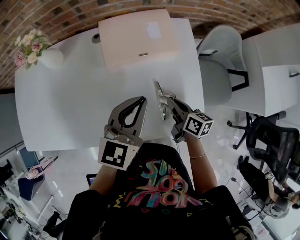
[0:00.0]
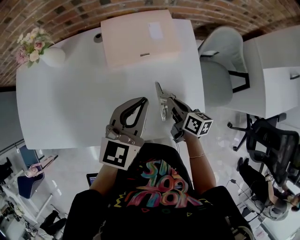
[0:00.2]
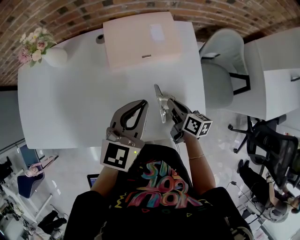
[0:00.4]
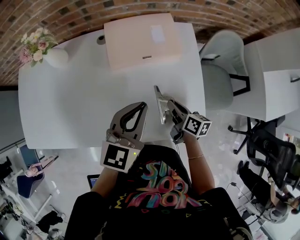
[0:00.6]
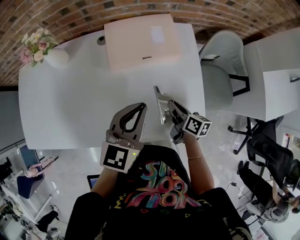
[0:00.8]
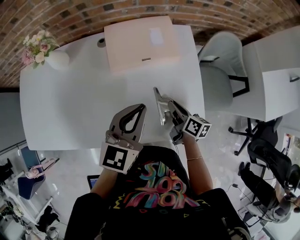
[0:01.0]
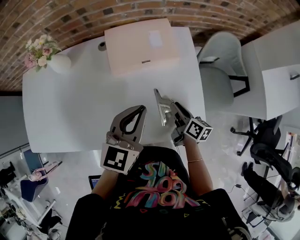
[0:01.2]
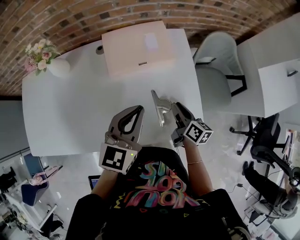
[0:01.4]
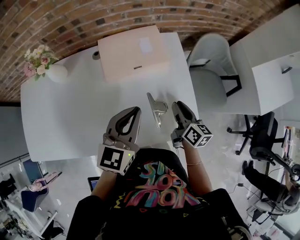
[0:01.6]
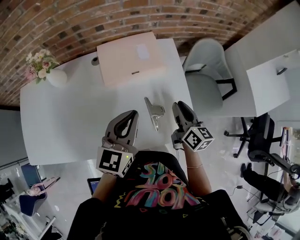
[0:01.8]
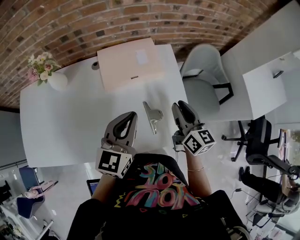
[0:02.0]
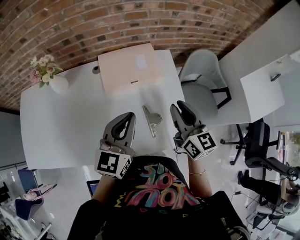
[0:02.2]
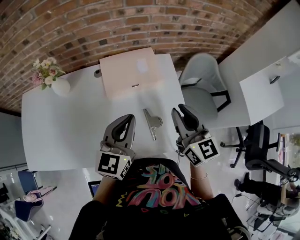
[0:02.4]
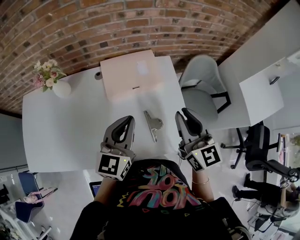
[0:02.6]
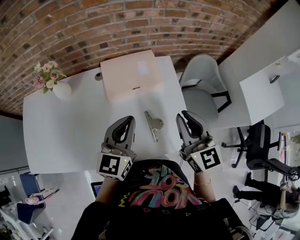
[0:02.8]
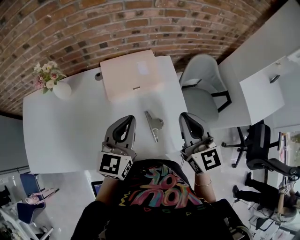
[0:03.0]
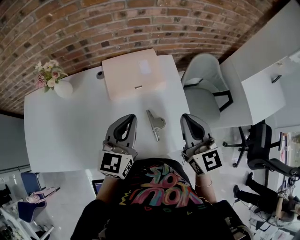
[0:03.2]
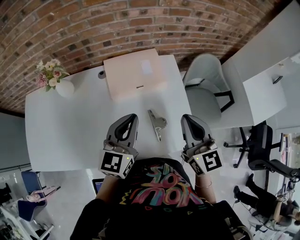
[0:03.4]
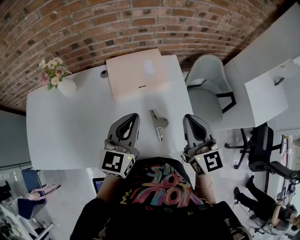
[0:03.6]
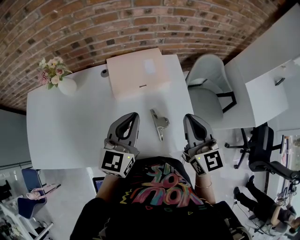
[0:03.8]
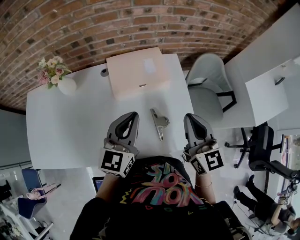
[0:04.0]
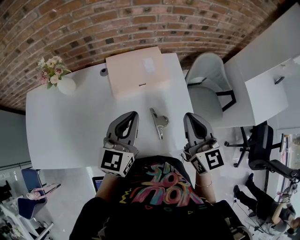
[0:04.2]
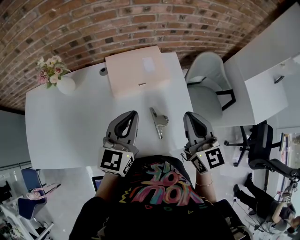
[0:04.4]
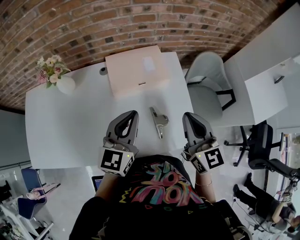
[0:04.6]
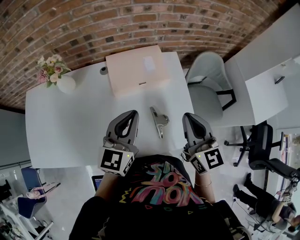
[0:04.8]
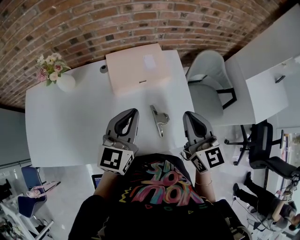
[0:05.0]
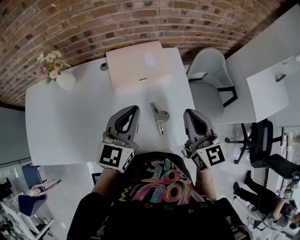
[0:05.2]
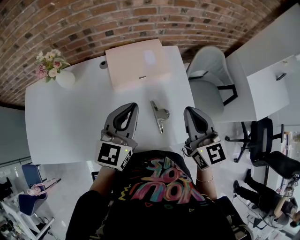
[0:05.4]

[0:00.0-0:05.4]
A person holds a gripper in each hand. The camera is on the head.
0:00.0 to 0:01.4: The right gripper opens up.
0:01.4 to 0:02.8: The right gripper heads upward, covering roughly 25 cm, and rolls counterclockwise, seen from behind, by approximately 50 degrees. Meanwhile the left gripper travels upward by approximately 5 cm.
0:02.8 to 0:05.4: The grippers stay close to where they were, moving slightly.

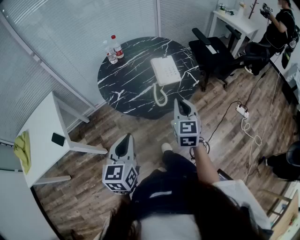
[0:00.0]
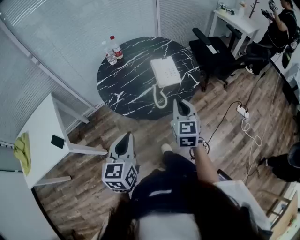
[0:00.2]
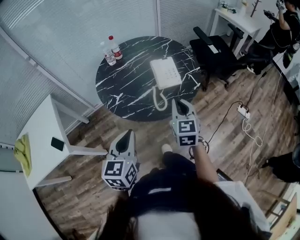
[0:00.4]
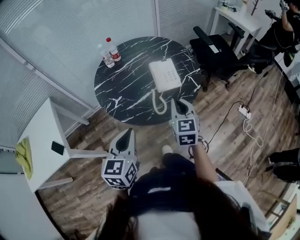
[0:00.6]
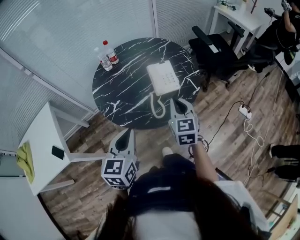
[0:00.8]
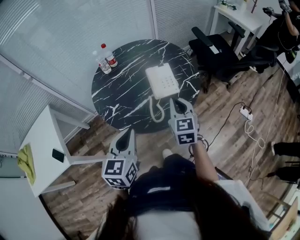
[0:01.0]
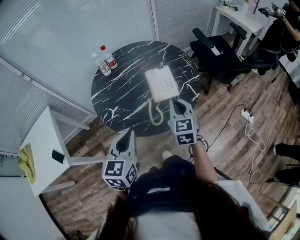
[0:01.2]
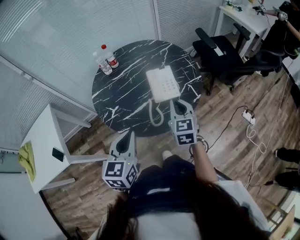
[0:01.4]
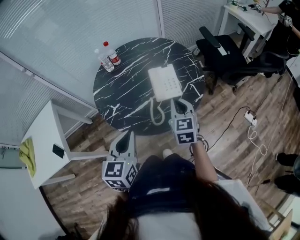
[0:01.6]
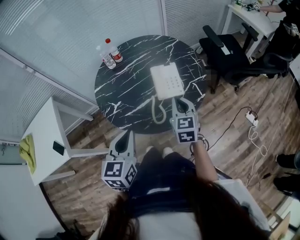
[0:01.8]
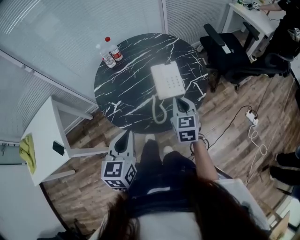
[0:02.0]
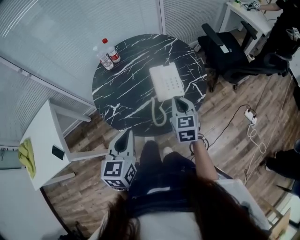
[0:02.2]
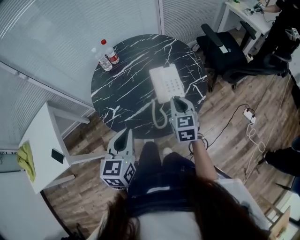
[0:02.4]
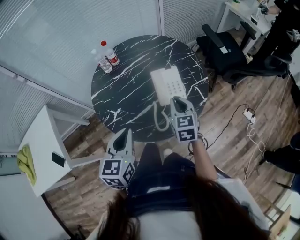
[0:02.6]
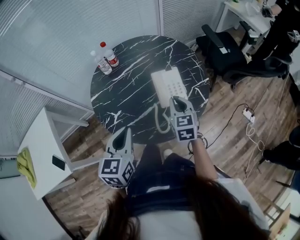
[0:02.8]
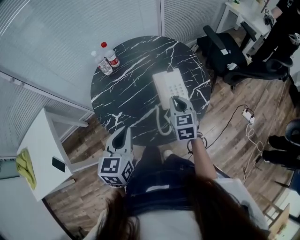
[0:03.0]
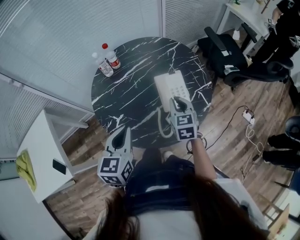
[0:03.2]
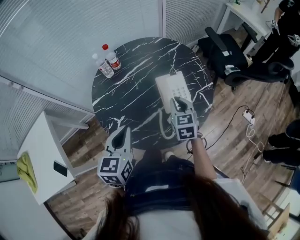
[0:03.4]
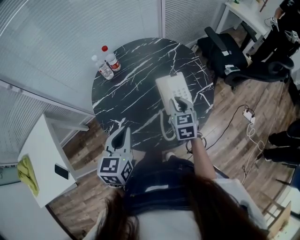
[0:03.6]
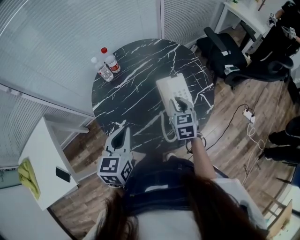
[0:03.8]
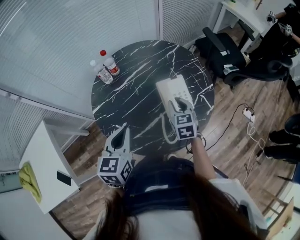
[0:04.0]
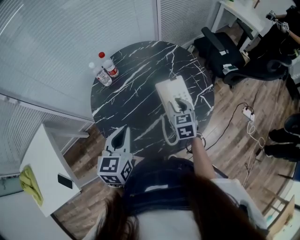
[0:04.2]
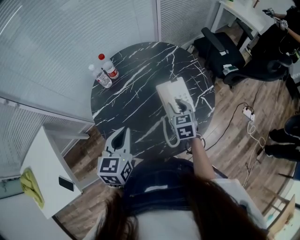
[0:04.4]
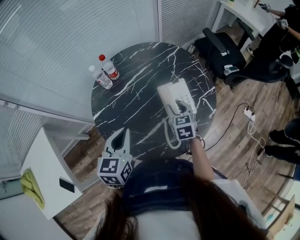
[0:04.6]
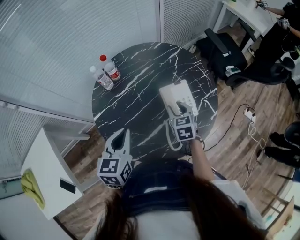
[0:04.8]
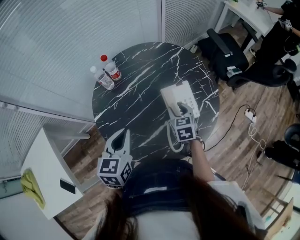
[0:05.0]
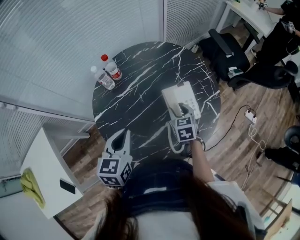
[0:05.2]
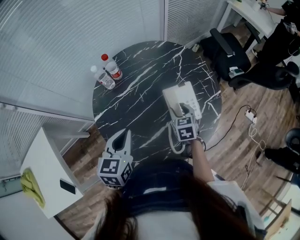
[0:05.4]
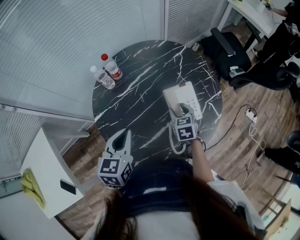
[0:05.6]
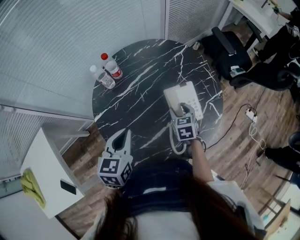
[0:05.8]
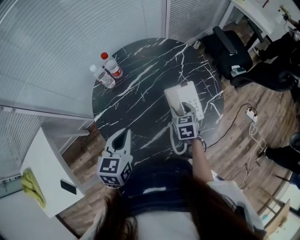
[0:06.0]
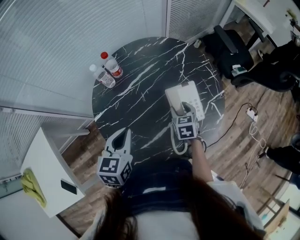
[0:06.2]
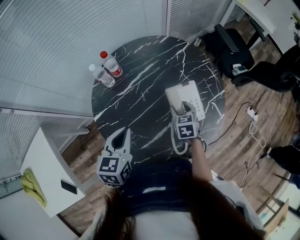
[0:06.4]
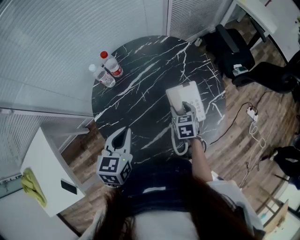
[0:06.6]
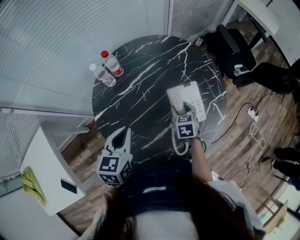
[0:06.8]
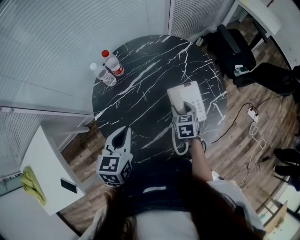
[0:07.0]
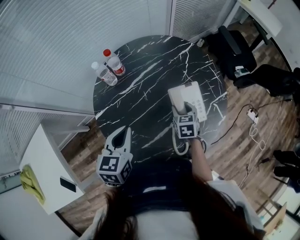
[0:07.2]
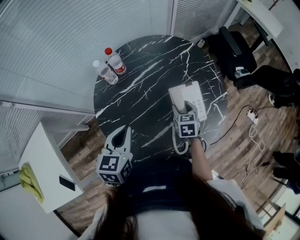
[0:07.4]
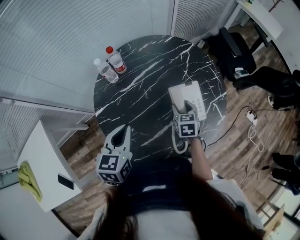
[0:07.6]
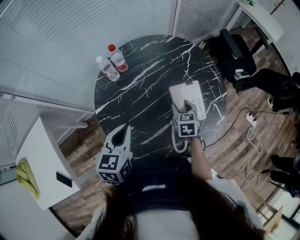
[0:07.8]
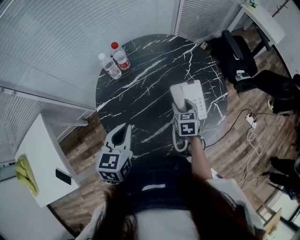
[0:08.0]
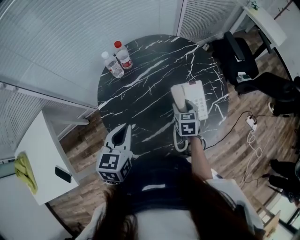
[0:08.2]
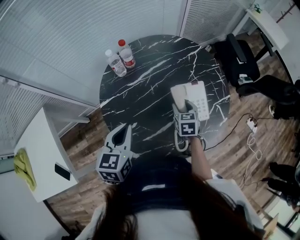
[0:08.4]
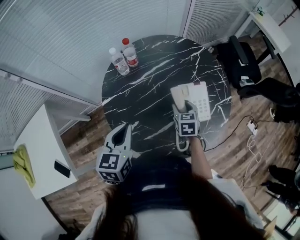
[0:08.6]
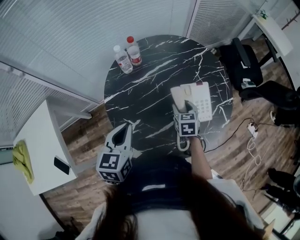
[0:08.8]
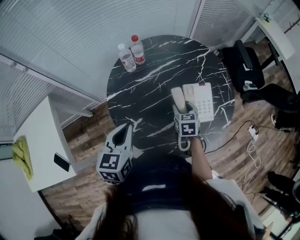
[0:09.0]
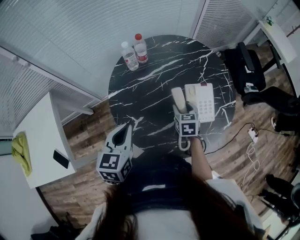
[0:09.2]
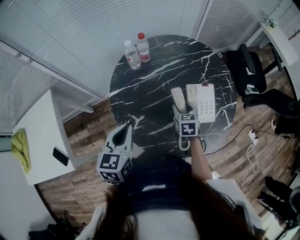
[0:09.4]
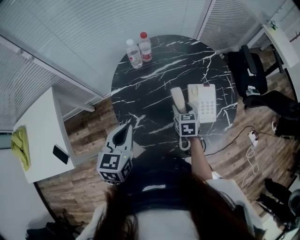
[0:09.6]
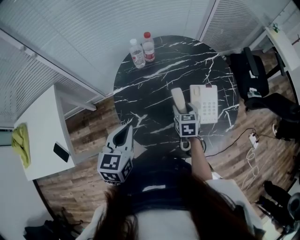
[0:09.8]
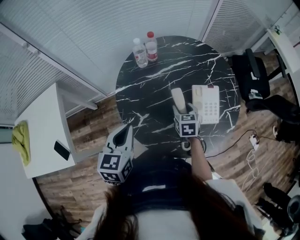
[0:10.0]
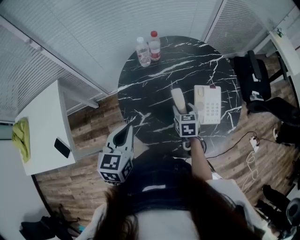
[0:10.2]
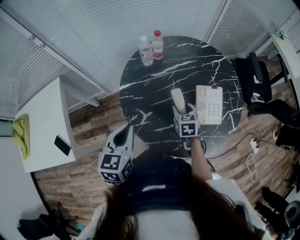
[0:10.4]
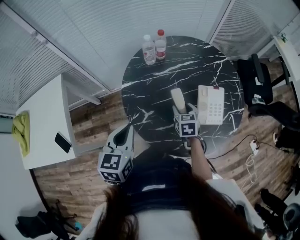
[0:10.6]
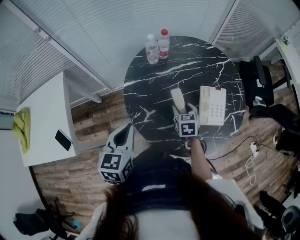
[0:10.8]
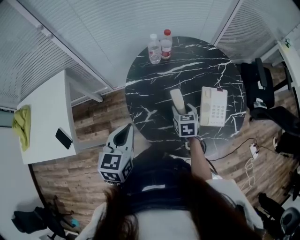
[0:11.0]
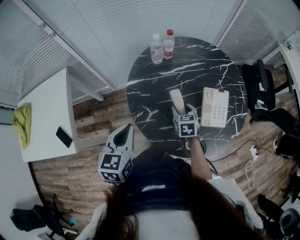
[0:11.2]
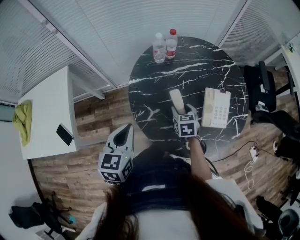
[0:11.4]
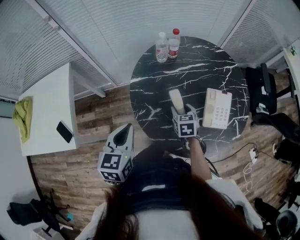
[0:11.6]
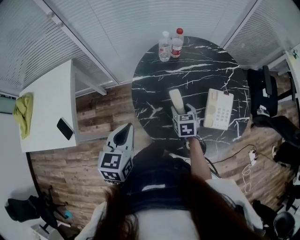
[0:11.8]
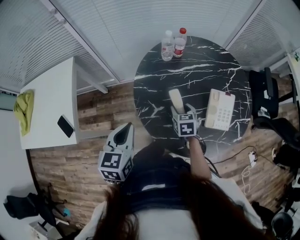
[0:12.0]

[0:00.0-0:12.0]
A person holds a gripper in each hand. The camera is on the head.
0:00.0 to 0:01.6: The two grippers go about 15 cm forward.
0:01.6 to 0:03.0: The left gripper moves forward and to the left, some 10 cm, while the right gripper is displaced forward by some 10 cm.
0:03.0 to 0:04.4: Both grippers travel together forward, about 5 cm. The right gripper opens.
0:04.4 to 0:06.0: The right gripper is displaced downward by some 5 cm. The left gripper ends up approximately 5 cm from where it was.
0:06.0 to 0:07.6: The grippers make only small movements.
0:07.6 to 0:09.0: The left gripper heads backward, covering roughly 5 cm, while the right gripper moves to the left, approximately 5 cm.
0:09.0 to 0:10.4: The left gripper shifts by roughly 5 cm; the right gripper heads to the left, covering some 5 cm.
0:10.4 to 0:12.0: The left gripper ends up approximately 5 cm from where it was. Meanwhile the right gripper shifts approximately 10 cm to the left.

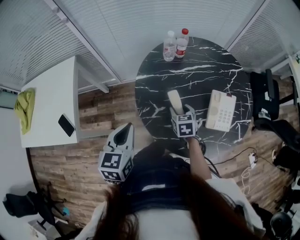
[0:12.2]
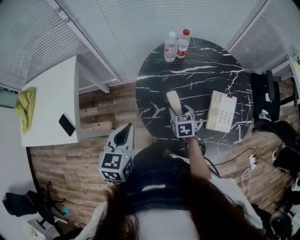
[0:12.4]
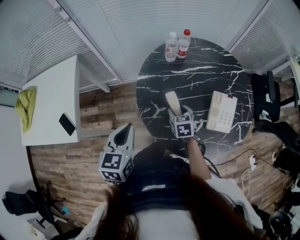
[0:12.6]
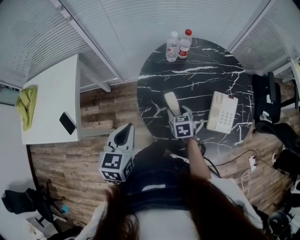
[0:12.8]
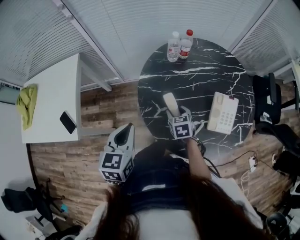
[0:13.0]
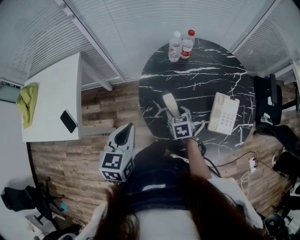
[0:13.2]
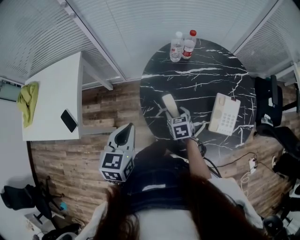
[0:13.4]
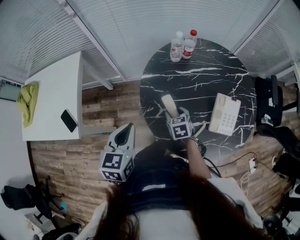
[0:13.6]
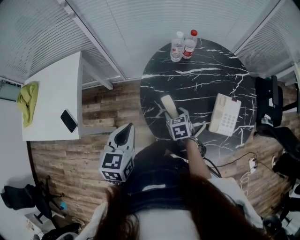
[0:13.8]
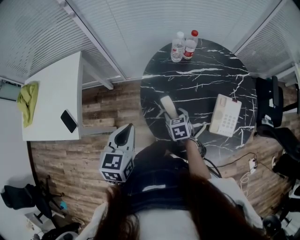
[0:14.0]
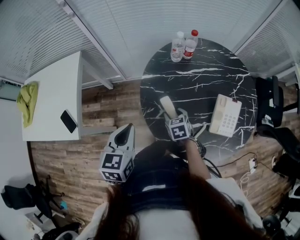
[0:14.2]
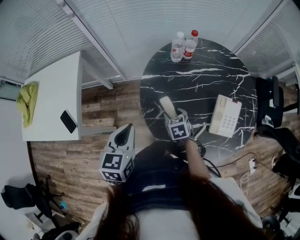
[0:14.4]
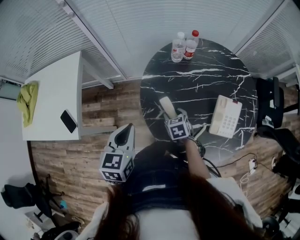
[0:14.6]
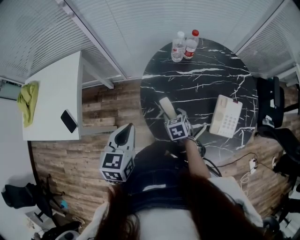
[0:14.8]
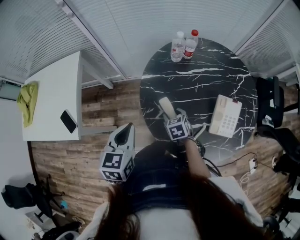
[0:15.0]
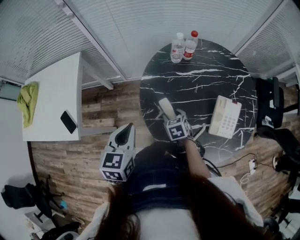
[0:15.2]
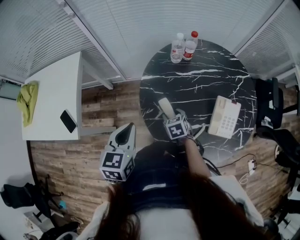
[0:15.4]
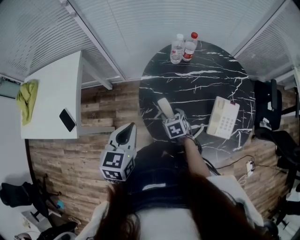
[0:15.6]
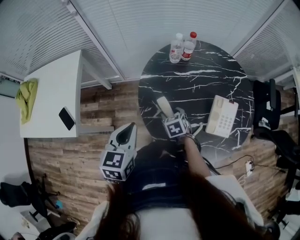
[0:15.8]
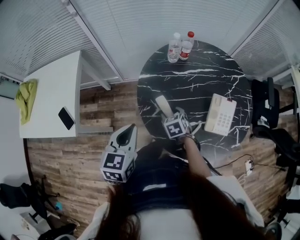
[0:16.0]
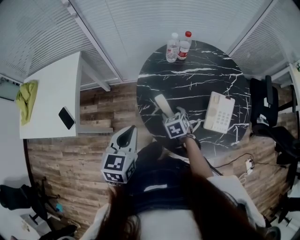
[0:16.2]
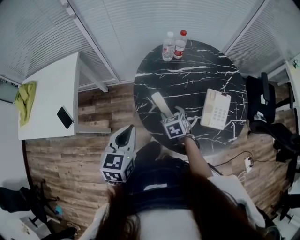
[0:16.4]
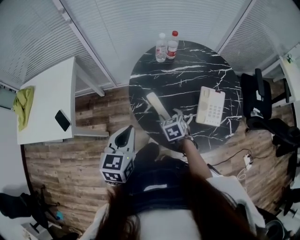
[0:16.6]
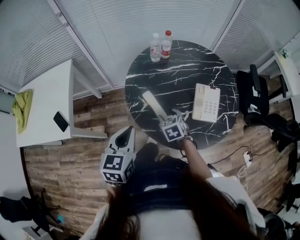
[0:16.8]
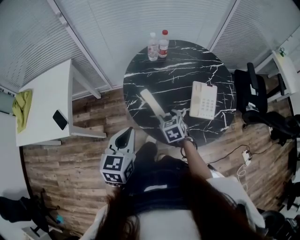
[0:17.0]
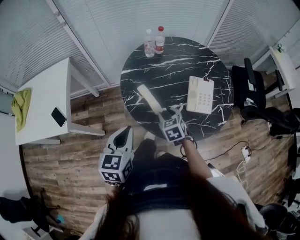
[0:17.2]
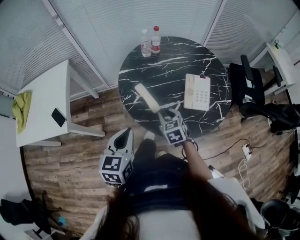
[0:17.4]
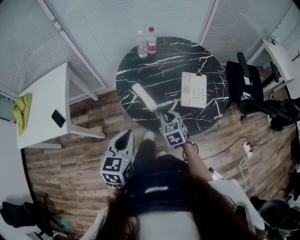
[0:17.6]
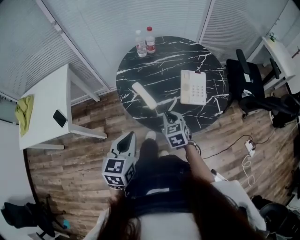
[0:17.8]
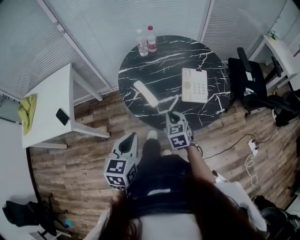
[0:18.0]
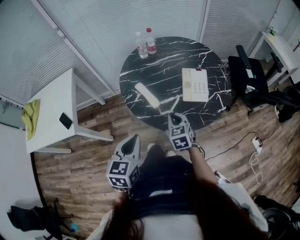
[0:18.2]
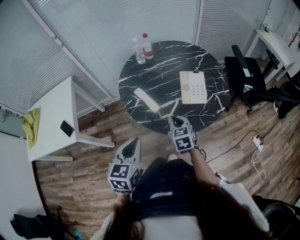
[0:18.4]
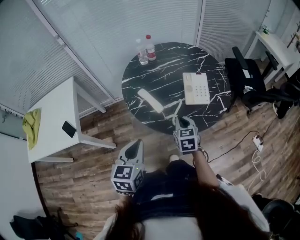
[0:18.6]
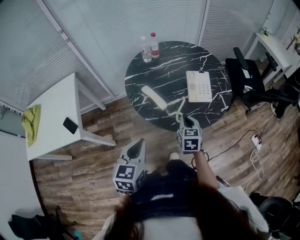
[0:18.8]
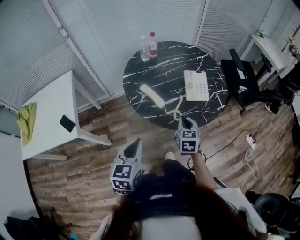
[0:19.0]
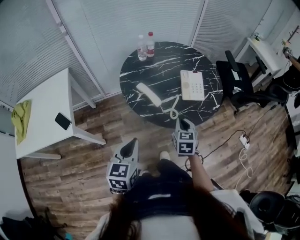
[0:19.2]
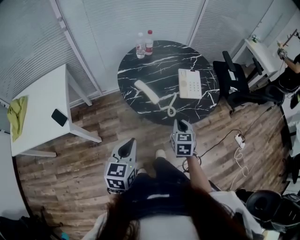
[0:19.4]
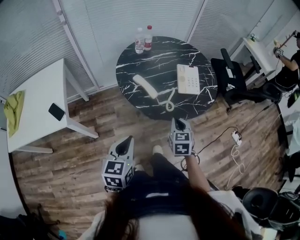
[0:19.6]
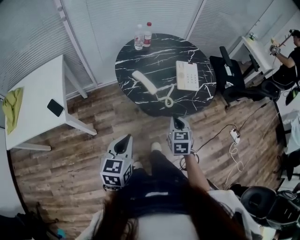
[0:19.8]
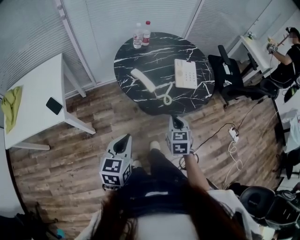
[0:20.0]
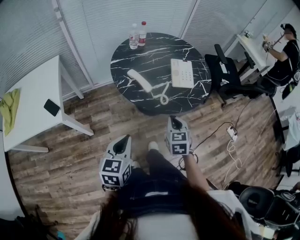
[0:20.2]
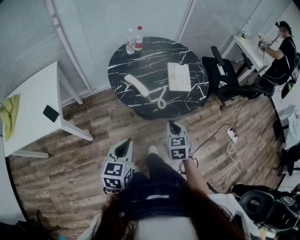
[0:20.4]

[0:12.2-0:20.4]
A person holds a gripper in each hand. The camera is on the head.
0:12.2 to 0:13.8: The right gripper shifts about 5 cm to the left.
0:13.8 to 0:15.4: The grippers make only small movements.
0:15.4 to 0:17.2: The right gripper goes approximately 15 cm backward, upward and to the right; the left gripper goes some 15 cm backward and to the right.
0:17.2 to 0:18.8: The right gripper heads backward, to the right and upward, covering approximately 15 cm, swivels some 30 degrees, and closes up. Meanwhile the left gripper is displaced backward by about 10 cm.
0:18.8 to 0:20.4: The grippers both shift backward by about 10 cm.
